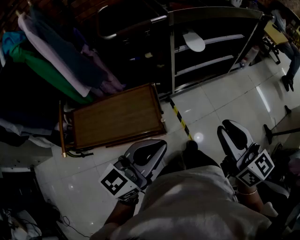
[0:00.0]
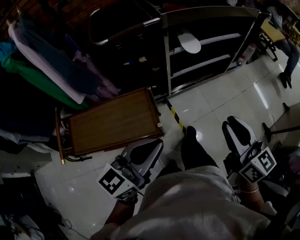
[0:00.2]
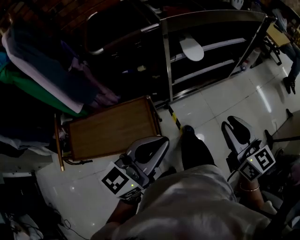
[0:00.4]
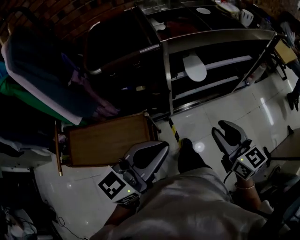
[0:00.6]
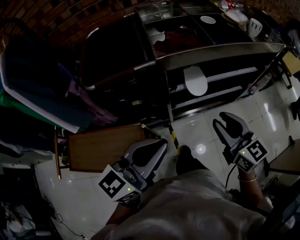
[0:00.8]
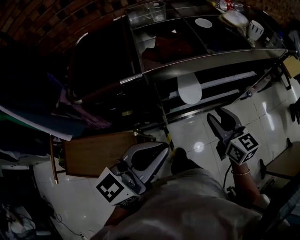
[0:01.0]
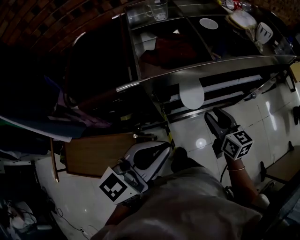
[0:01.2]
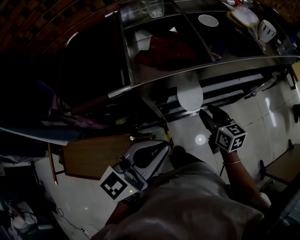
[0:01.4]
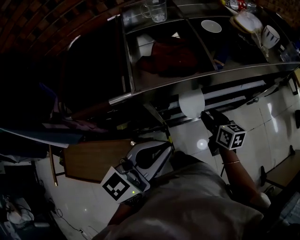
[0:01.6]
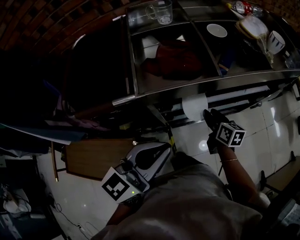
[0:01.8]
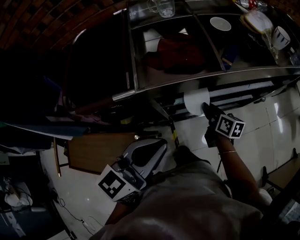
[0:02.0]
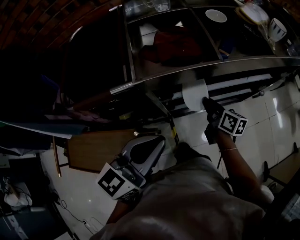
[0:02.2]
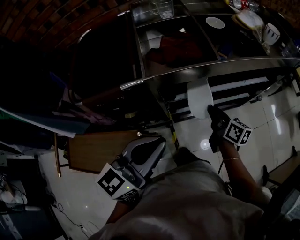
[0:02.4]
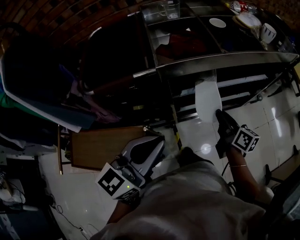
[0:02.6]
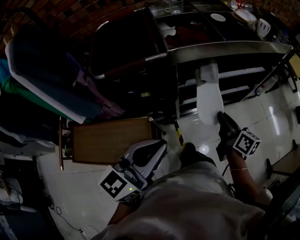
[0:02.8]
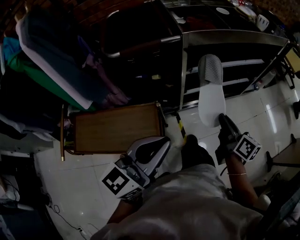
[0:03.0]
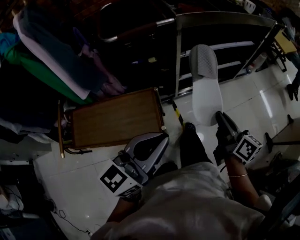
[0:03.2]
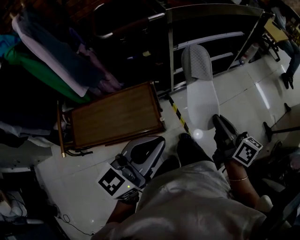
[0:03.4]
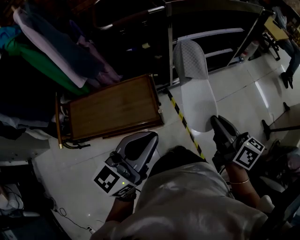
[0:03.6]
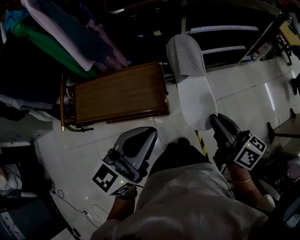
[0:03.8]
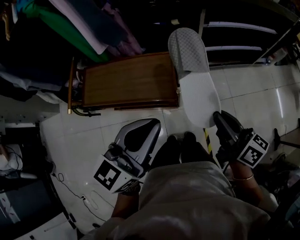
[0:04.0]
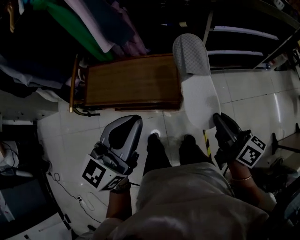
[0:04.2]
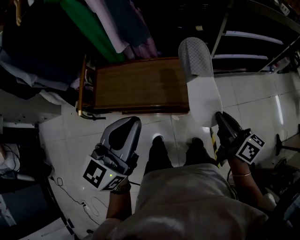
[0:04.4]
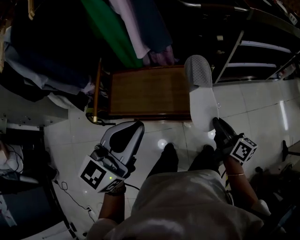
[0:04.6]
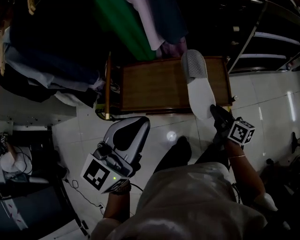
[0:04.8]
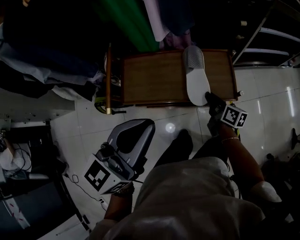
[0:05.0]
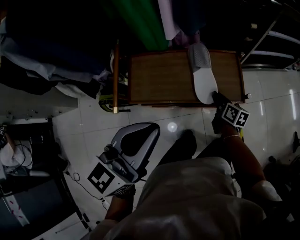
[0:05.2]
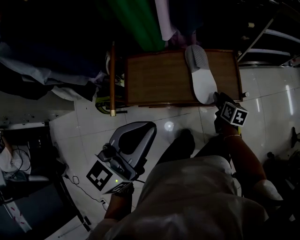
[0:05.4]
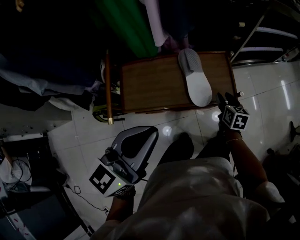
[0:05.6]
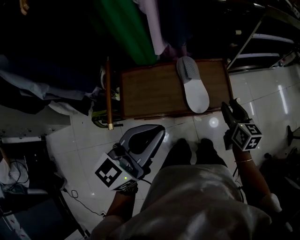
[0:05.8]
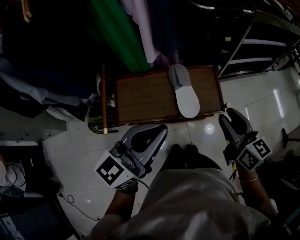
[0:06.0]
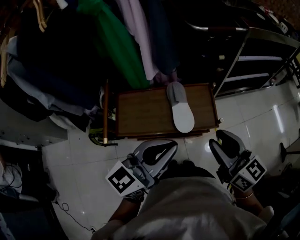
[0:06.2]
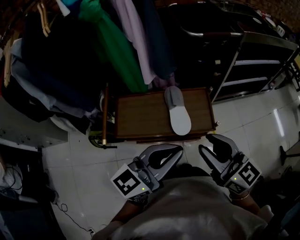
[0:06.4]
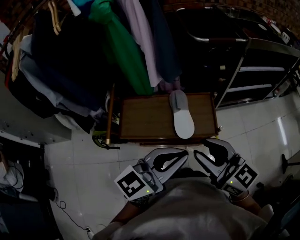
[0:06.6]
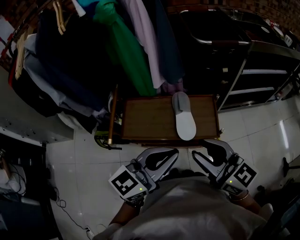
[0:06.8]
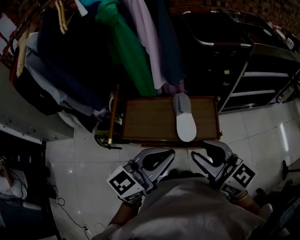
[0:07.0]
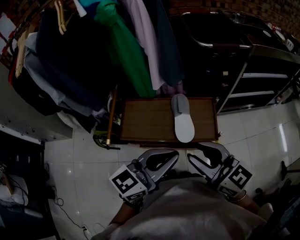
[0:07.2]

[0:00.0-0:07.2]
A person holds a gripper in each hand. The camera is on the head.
0:00.0 to 0:01.4: The right gripper heads forward and downward, covering roughly 50 cm, and swivels some 20 degrees; the left gripper travels forward by about 40 cm.
0:01.4 to 0:02.8: The left gripper is displaced backward and to the left by some 15 cm; the right gripper is displaced backward and upward by roughly 15 cm, turns by about 30 degrees, and closes up.
0:02.8 to 0:04.4: The right gripper moves backward and to the left, some 40 cm; the left gripper heads to the left and backward, covering approximately 35 cm.
0:04.4 to 0:05.8: The right gripper is displaced to the left and downward by roughly 20 cm, swivels approximately 30 degrees, and opens its fingers; the left gripper goes roughly 15 cm to the left.
0:05.8 to 0:07.2: The left gripper moves to the right, some 10 cm. Meanwhile the right gripper travels upward and backward by about 25 cm, and turns by approximately 50 degrees.

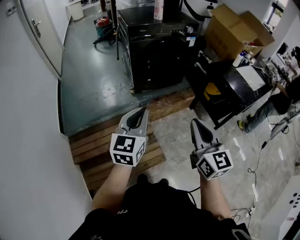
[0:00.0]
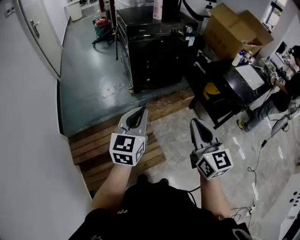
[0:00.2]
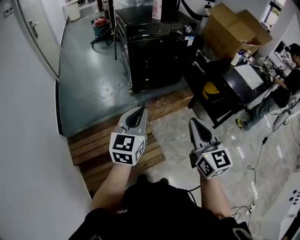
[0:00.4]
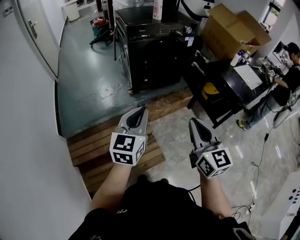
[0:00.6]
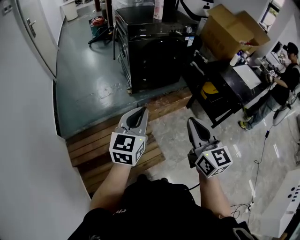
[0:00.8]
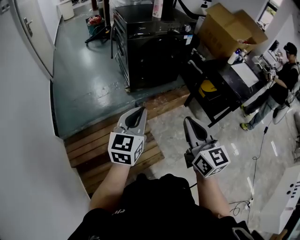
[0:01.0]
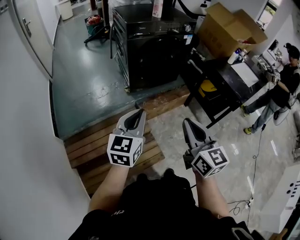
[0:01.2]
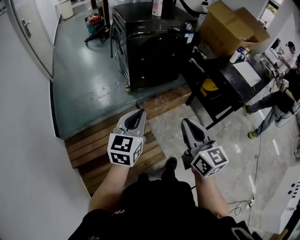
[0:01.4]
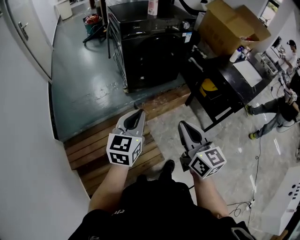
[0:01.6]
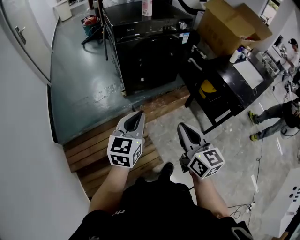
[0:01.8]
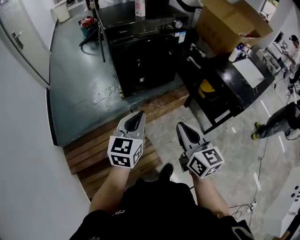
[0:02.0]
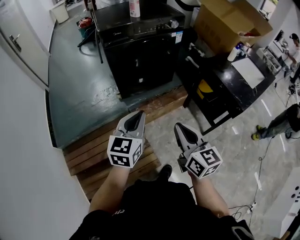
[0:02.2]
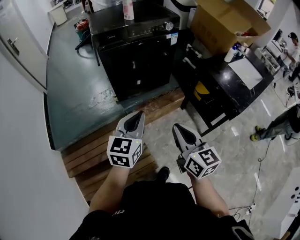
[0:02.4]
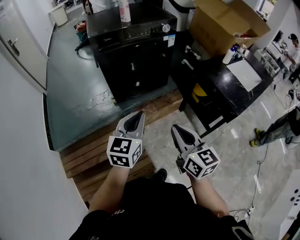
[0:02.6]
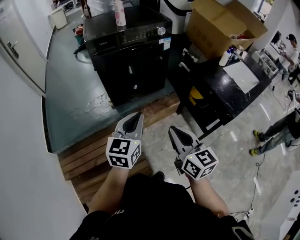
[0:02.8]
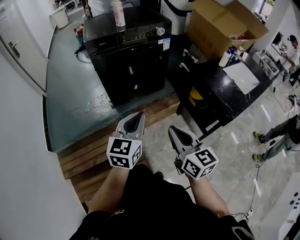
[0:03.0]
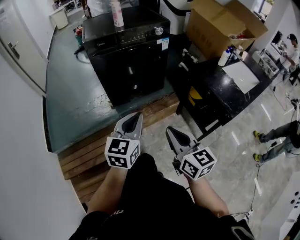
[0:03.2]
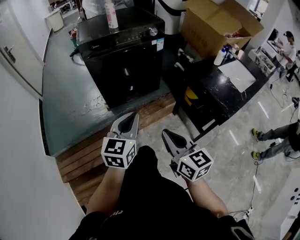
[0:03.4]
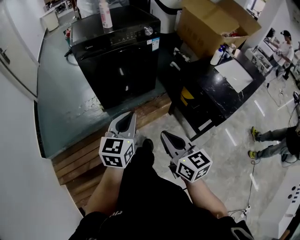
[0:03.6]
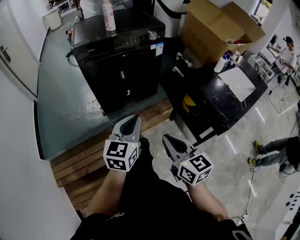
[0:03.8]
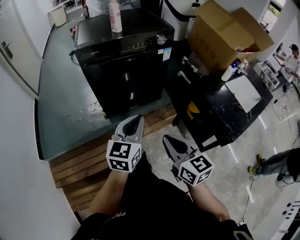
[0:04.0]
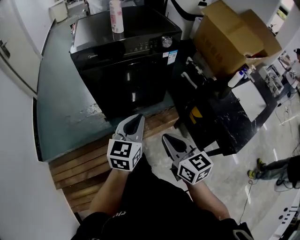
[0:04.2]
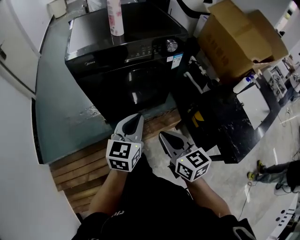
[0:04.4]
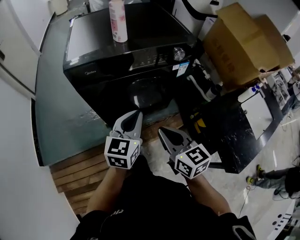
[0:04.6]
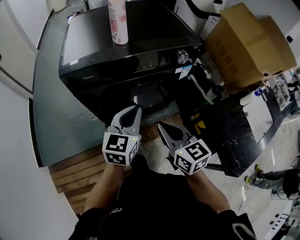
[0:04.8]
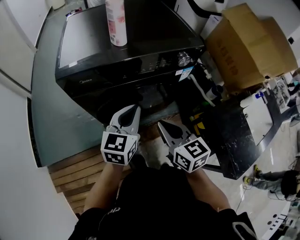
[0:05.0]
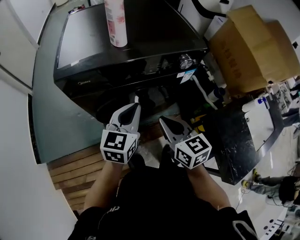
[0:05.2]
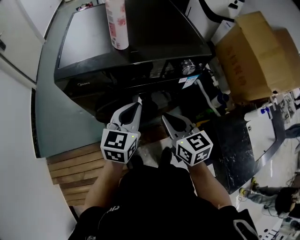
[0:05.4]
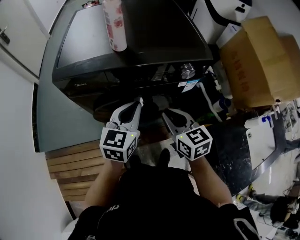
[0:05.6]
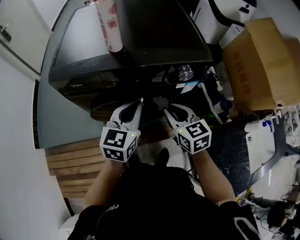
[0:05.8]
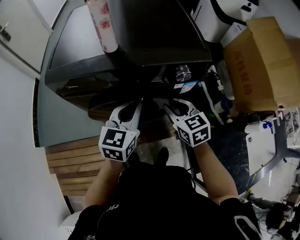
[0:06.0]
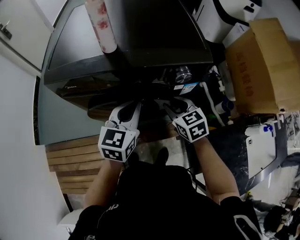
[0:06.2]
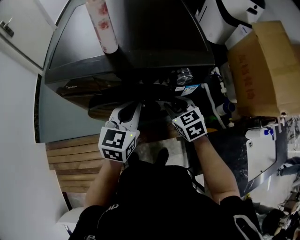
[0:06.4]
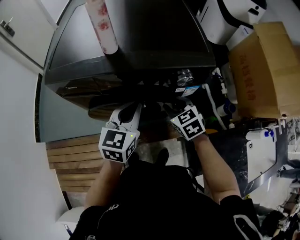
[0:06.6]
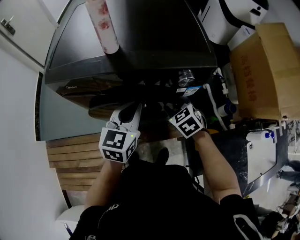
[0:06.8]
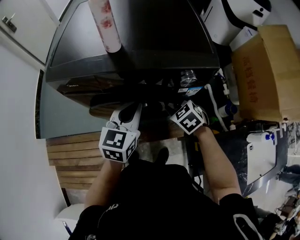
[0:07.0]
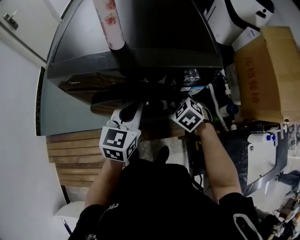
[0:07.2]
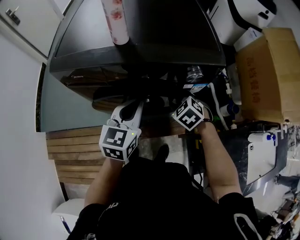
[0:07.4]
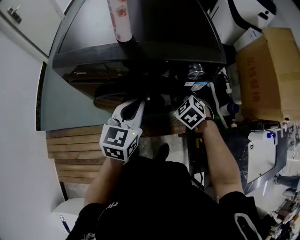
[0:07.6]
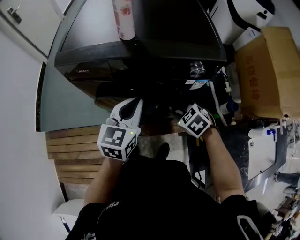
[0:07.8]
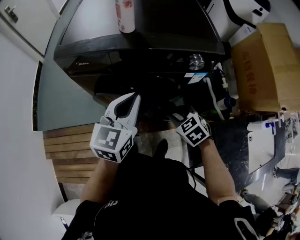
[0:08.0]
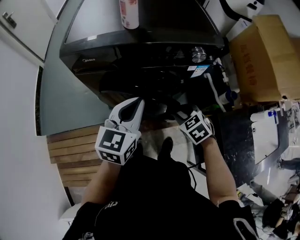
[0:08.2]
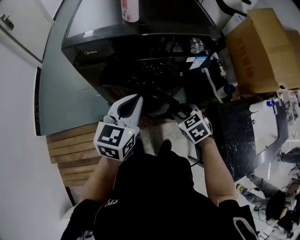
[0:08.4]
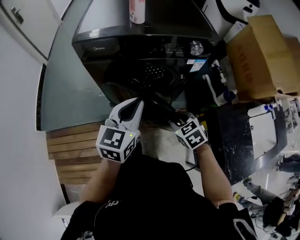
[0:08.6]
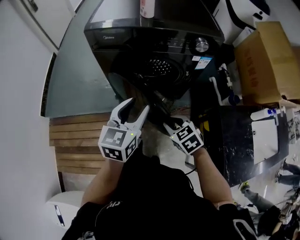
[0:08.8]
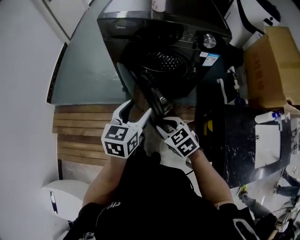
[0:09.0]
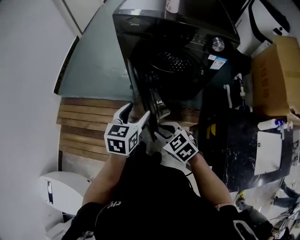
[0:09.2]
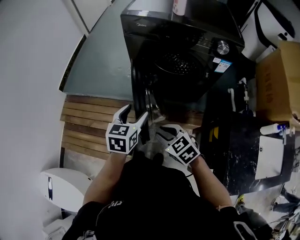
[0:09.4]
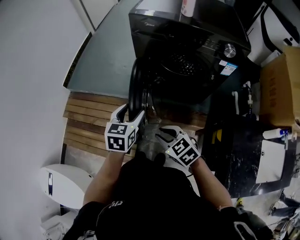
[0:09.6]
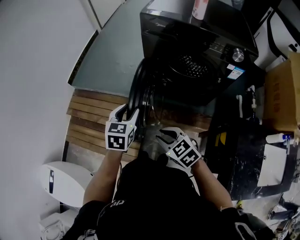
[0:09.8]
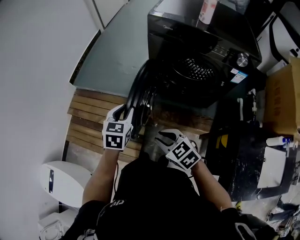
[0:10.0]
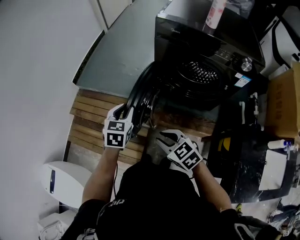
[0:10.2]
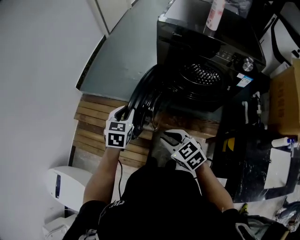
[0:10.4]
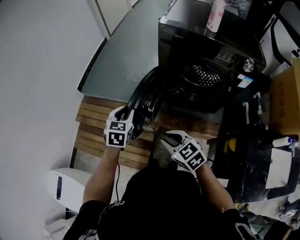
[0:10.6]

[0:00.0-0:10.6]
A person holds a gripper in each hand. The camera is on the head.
0:00.0 to 0:01.6: The right gripper shifts by about 5 cm; the left gripper ends up some 5 cm from where it was.
0:01.6 to 0:03.0: The grippers both shift to the right and forward by roughly 20 cm.
0:03.0 to 0:04.6: The two grippers go approximately 35 cm forward.
0:04.6 to 0:06.0: The left gripper is displaced forward and to the right by roughly 15 cm, while the right gripper shifts roughly 25 cm forward and to the right, rotates about 20 degrees, and opens its fingers.
0:06.0 to 0:07.6: The right gripper goes roughly 10 cm downward, and rotates approximately 40 degrees.
0:07.6 to 0:09.0: The two grippers go roughly 30 cm backward and to the left. The left gripper opens; the right gripper swivels approximately 20 degrees.
0:09.0 to 0:10.6: Both grippers move to the left, roughly 20 cm. The left gripper turns by some 30 degrees, and closes.

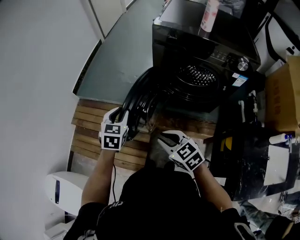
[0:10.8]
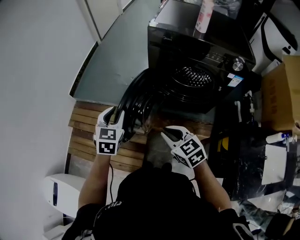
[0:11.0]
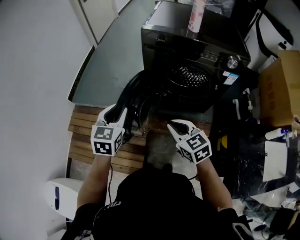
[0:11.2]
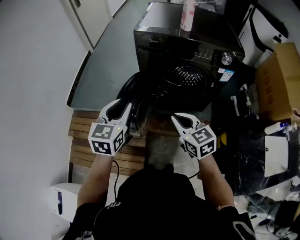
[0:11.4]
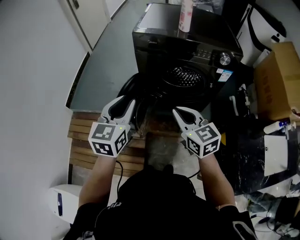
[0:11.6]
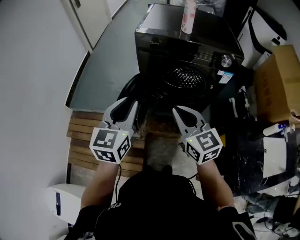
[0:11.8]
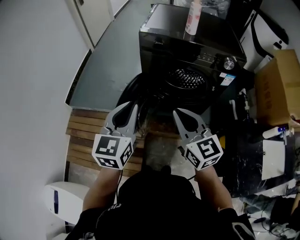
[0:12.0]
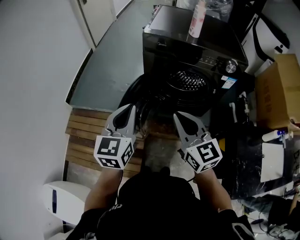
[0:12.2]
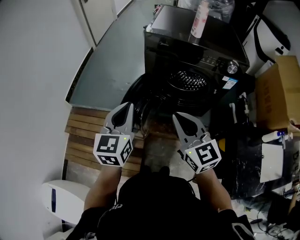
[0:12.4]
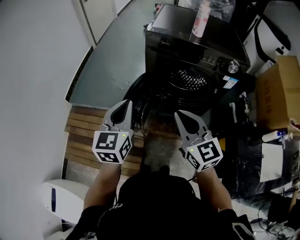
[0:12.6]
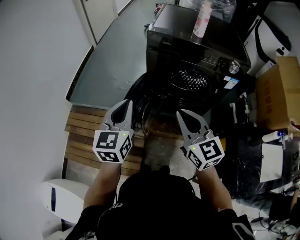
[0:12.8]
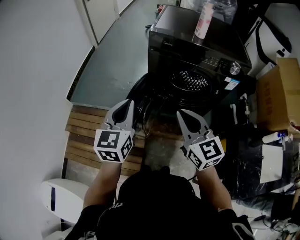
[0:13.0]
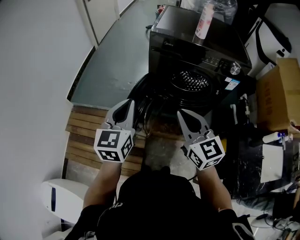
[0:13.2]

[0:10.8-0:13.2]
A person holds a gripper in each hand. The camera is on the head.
0:10.8 to 0:12.0: The two grippers go roughly 20 cm upward and to the right. The right gripper rotates approximately 40 degrees. Meanwhile the left gripper changes its angle by roughly 30 degrees.
0:12.0 to 0:13.2: The left gripper changes place by roughly 5 cm.

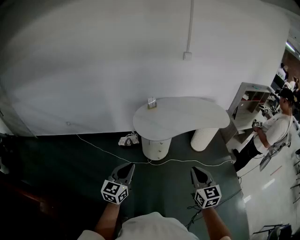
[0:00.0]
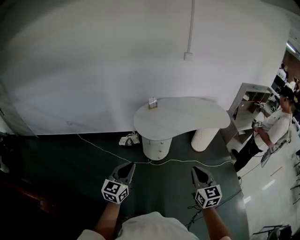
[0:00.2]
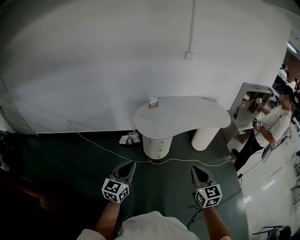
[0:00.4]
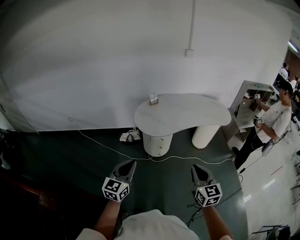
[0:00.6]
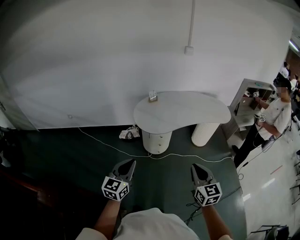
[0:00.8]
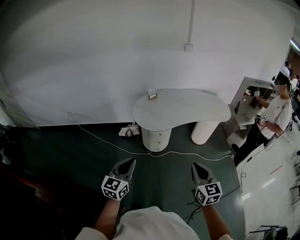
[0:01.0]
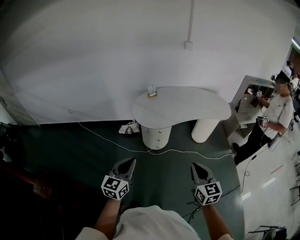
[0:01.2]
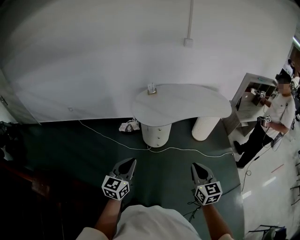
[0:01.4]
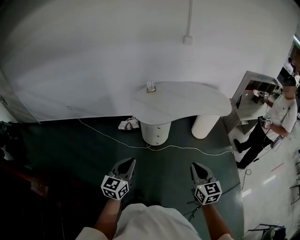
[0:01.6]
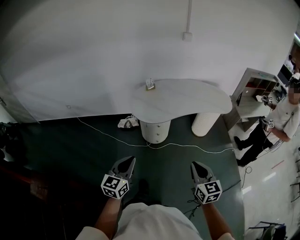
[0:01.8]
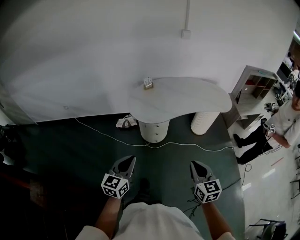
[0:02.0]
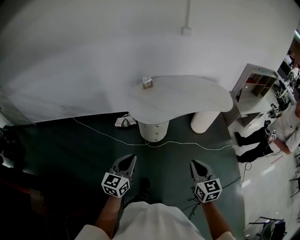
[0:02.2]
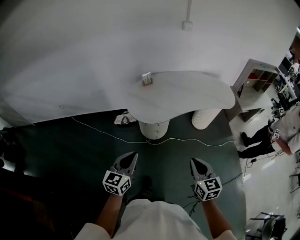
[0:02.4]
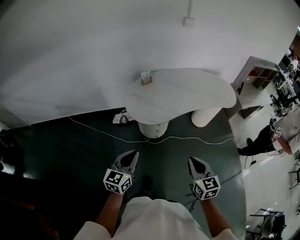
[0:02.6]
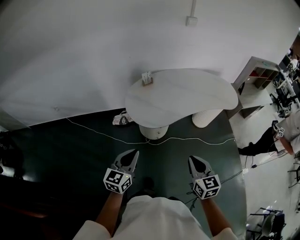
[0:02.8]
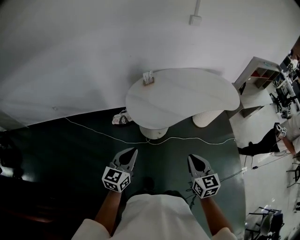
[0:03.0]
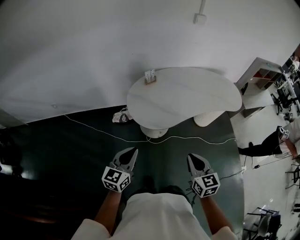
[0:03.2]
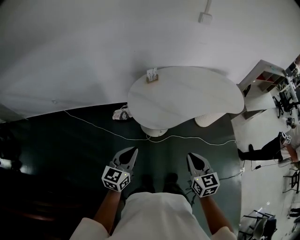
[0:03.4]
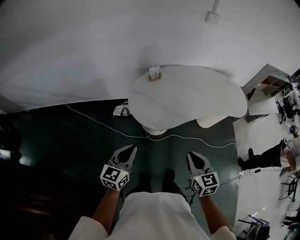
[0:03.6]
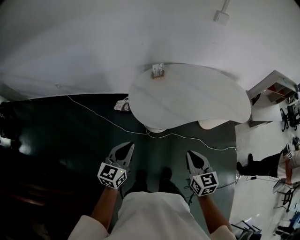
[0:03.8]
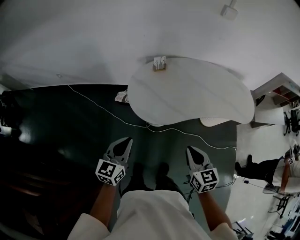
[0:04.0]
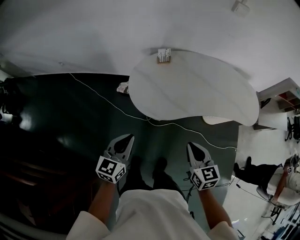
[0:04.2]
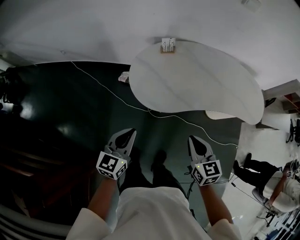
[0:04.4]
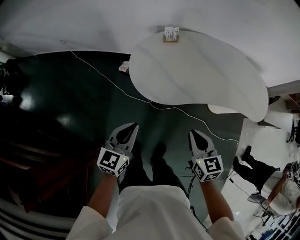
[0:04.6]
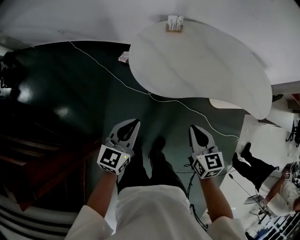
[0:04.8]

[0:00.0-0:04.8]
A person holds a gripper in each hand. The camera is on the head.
0:00.0 to 0:01.6: The two grippers go about 5 cm to the right.
0:01.6 to 0:03.2: The right gripper moves forward and to the left, approximately 25 cm. Meanwhile the left gripper goes about 25 cm forward.
0:03.2 to 0:04.8: The left gripper is displaced downward, to the right and forward by some 20 cm, while the right gripper heads forward, downward and to the right, covering some 20 cm, and rotates about 20 degrees.
